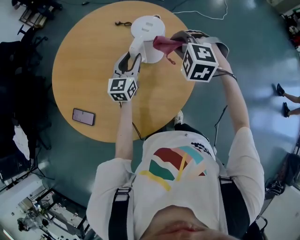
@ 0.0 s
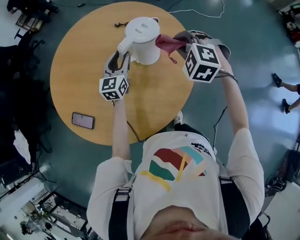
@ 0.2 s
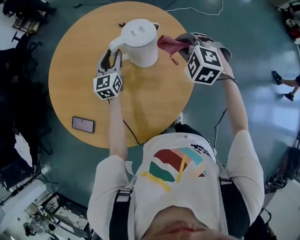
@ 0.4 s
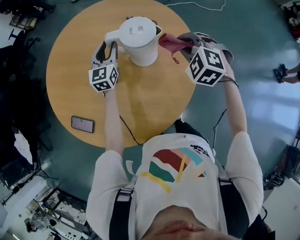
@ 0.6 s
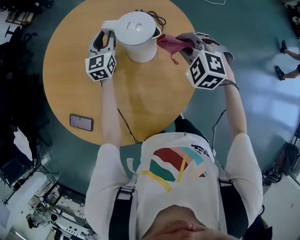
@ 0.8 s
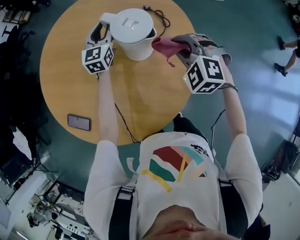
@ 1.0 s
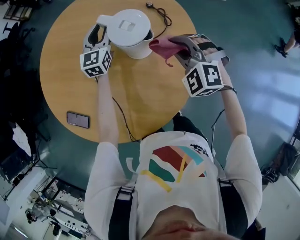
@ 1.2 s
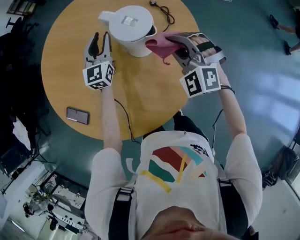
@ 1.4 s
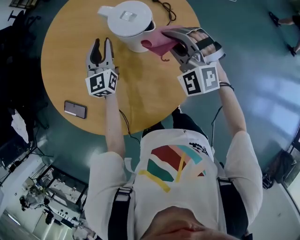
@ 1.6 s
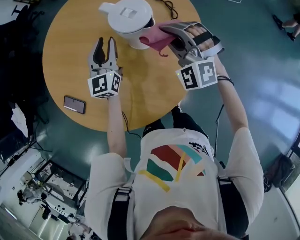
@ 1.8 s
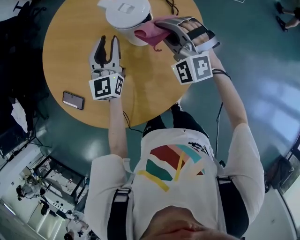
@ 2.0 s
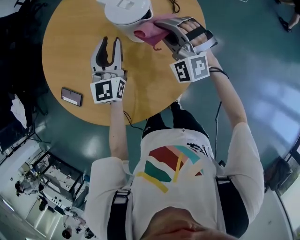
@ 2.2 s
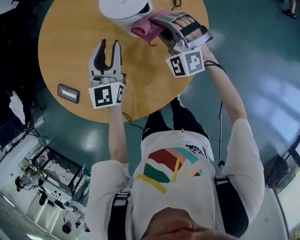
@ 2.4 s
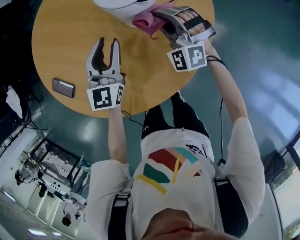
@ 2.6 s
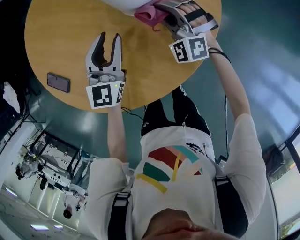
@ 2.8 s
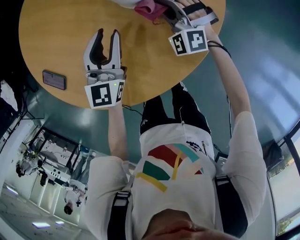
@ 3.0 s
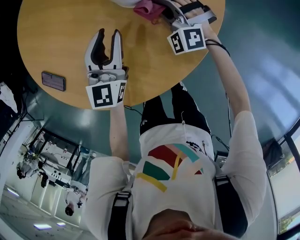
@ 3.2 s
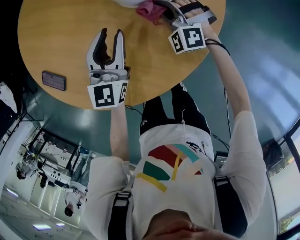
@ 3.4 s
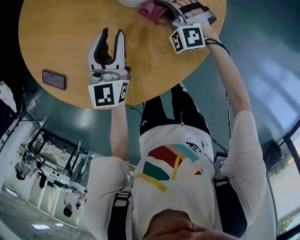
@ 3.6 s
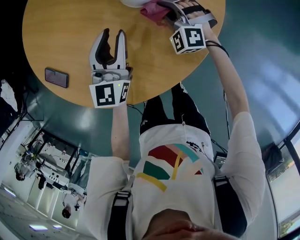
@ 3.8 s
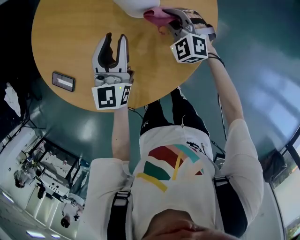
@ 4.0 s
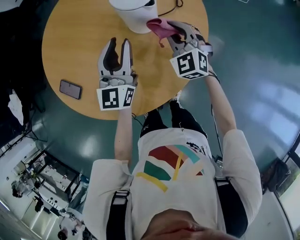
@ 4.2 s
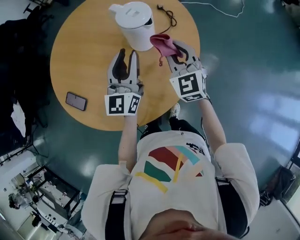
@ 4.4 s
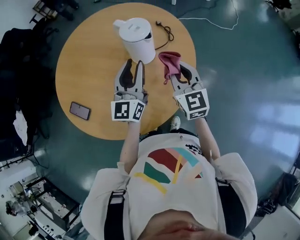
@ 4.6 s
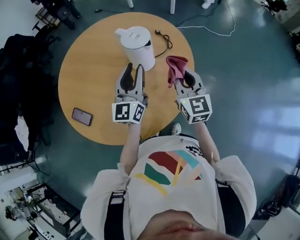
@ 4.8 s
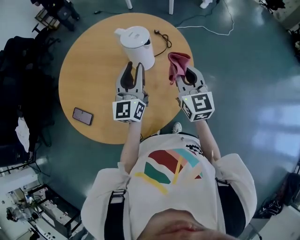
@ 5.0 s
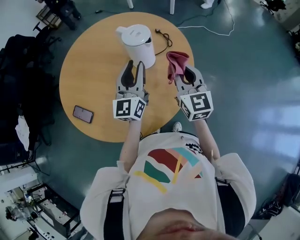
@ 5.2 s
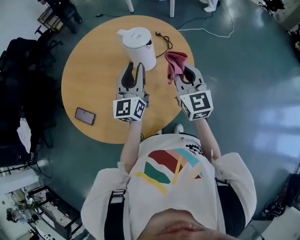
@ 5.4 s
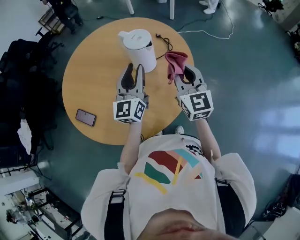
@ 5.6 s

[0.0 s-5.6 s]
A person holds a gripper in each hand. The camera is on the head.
0.0 to 1.4 s: The left gripper travels forward by about 15 cm. The right gripper heads forward, covering roughly 5 cm, and turns by approximately 20 degrees.
1.4 to 2.8 s: The left gripper is displaced backward and downward by roughly 20 cm; the right gripper heads downward, covering roughly 15 cm.
2.8 to 4.2 s: Both grippers travel together upward, some 10 cm. The right gripper rotates about 30 degrees.
4.2 to 5.6 s: The left gripper is displaced upward and backward by roughly 10 cm; the right gripper travels upward and backward by approximately 20 cm, and rotates approximately 40 degrees.

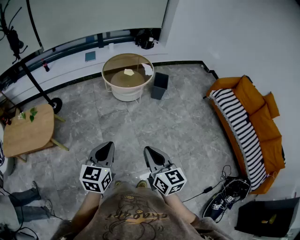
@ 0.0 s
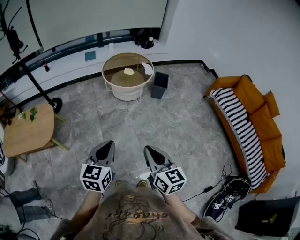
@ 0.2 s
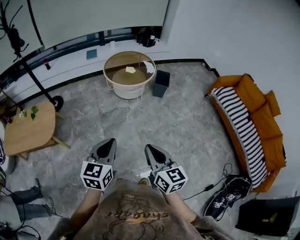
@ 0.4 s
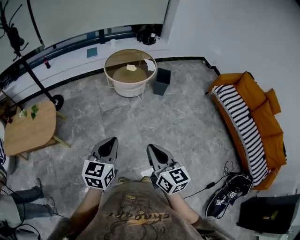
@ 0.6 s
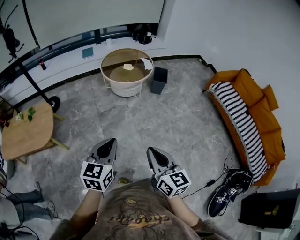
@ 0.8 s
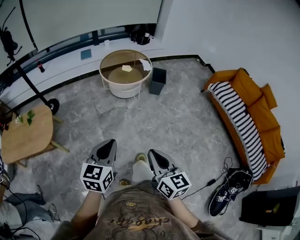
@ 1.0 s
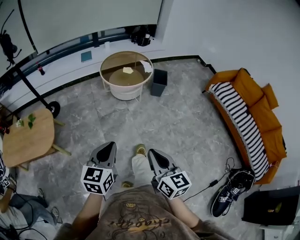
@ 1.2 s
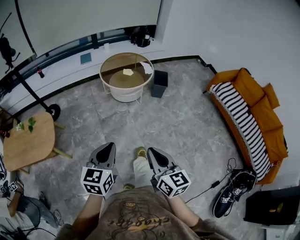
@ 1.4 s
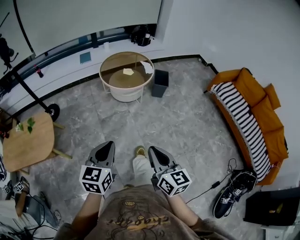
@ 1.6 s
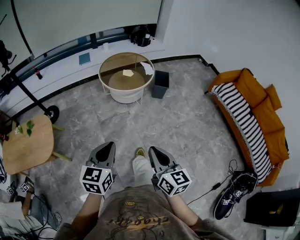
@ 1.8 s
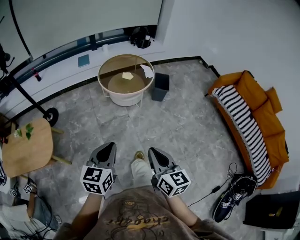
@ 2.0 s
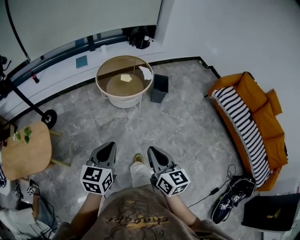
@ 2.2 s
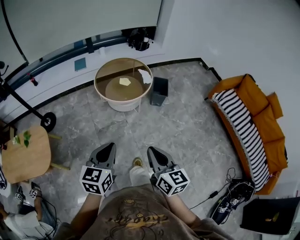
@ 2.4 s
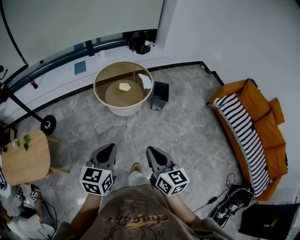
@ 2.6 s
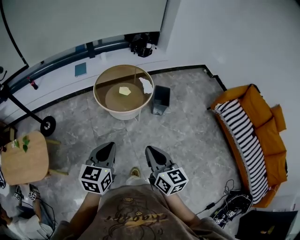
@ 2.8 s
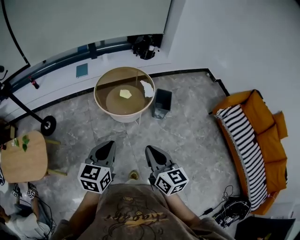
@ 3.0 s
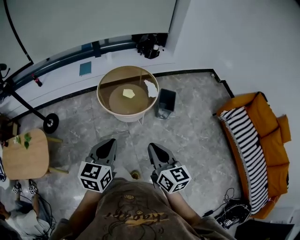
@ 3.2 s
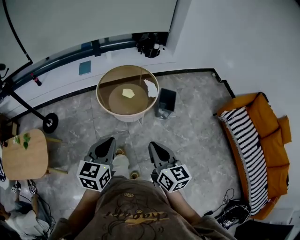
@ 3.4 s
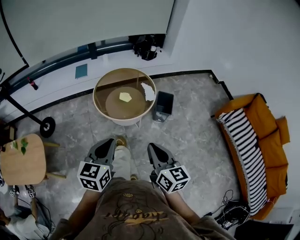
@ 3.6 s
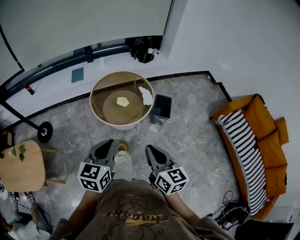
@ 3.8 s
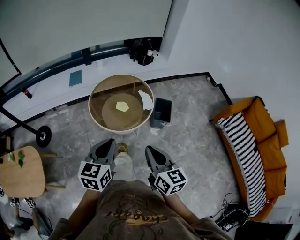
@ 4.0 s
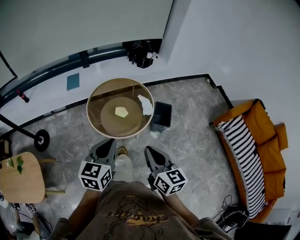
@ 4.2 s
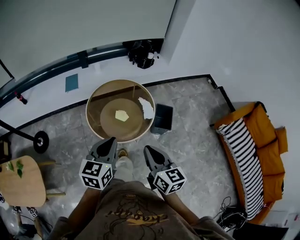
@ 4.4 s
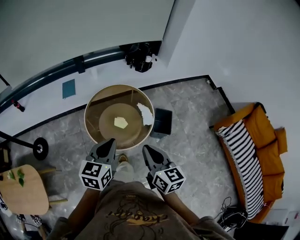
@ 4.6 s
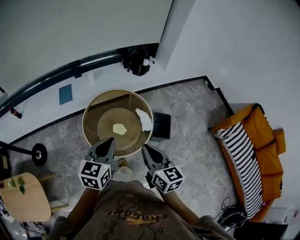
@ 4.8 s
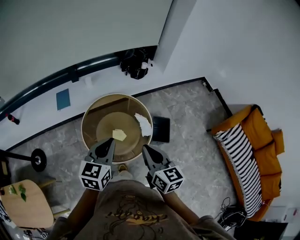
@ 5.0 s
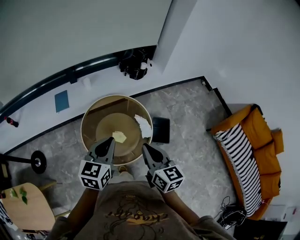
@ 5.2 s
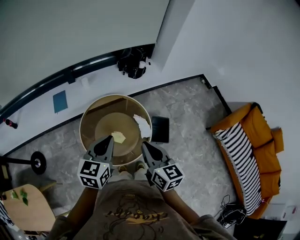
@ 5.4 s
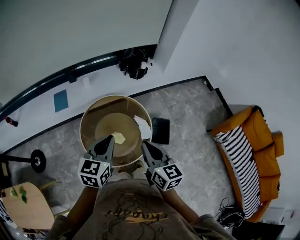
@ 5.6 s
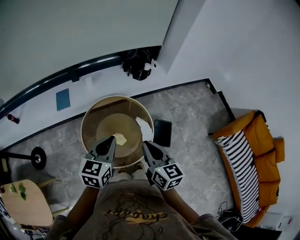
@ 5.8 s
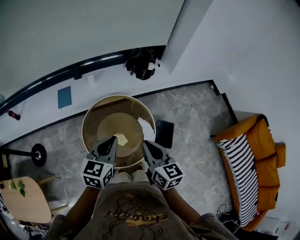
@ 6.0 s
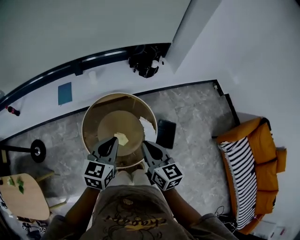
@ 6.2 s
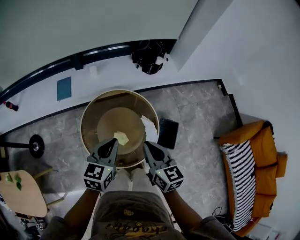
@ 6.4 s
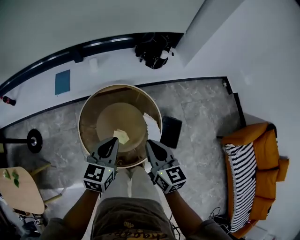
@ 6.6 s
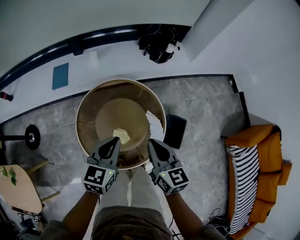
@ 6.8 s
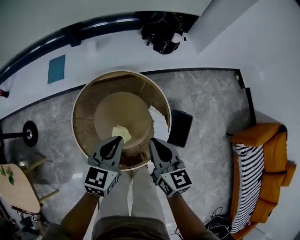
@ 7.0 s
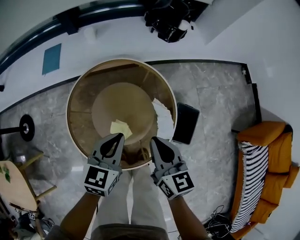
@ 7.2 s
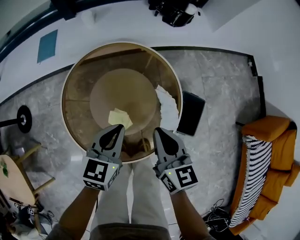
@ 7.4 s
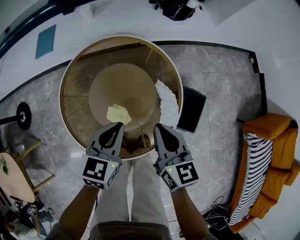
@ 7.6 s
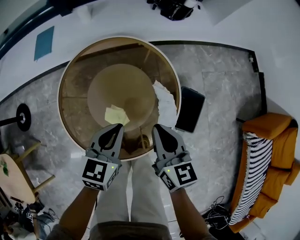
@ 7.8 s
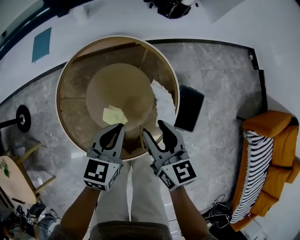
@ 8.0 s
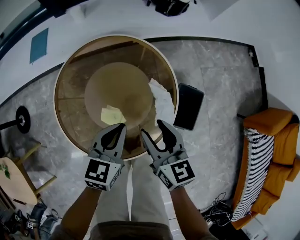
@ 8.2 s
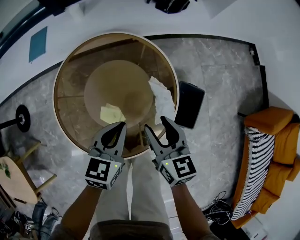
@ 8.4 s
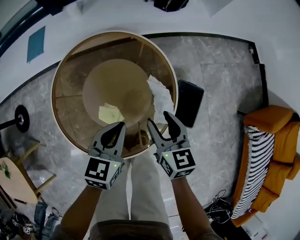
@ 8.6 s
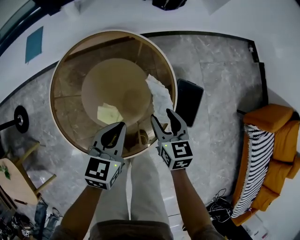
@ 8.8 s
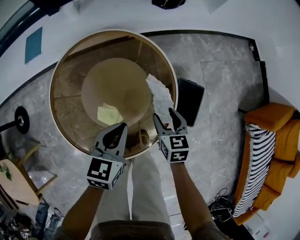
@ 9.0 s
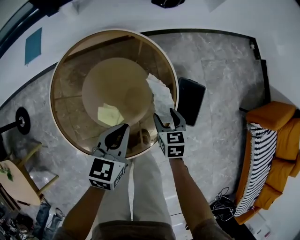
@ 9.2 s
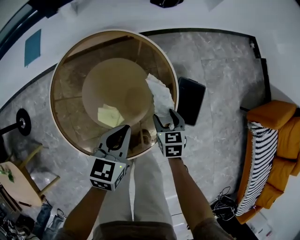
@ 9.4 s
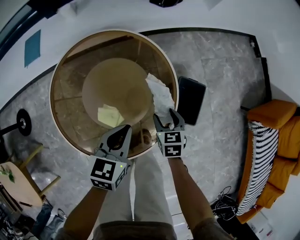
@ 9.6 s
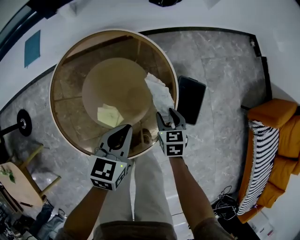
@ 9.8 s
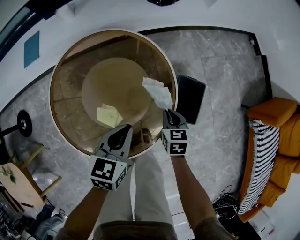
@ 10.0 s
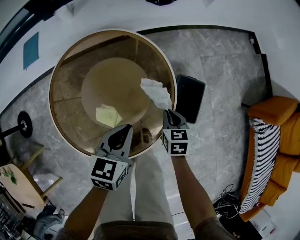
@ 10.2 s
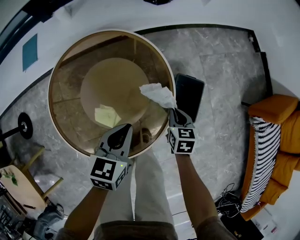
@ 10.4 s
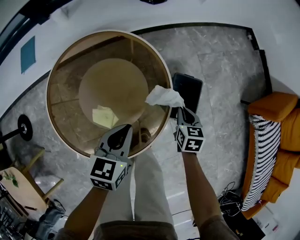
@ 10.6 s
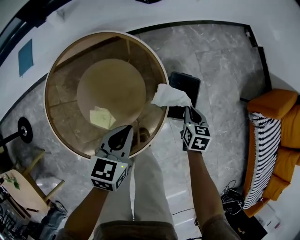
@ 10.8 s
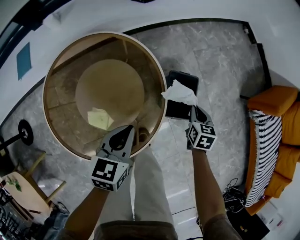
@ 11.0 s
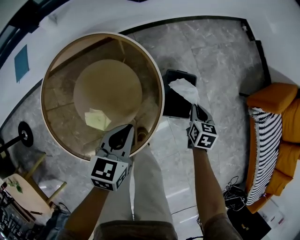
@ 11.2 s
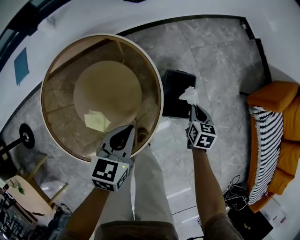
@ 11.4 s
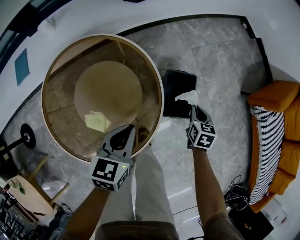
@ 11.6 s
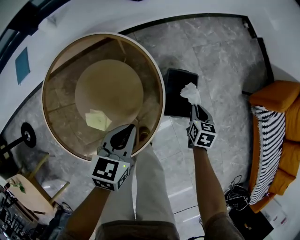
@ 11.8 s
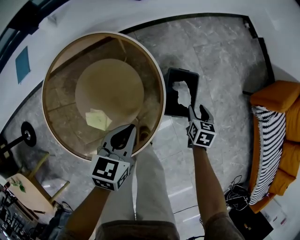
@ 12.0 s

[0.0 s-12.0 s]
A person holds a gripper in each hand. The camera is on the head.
0.0 to 1.6 s: The left gripper shifts about 10 cm forward and to the left, while the right gripper moves roughly 5 cm.
1.6 to 3.0 s: Both grippers travel together forward, some 25 cm.
3.0 to 4.4 s: Both grippers move forward, some 25 cm.
4.4 to 6.0 s: The two grippers go about 25 cm forward.
6.0 to 7.6 s: The two grippers go approximately 30 cm downward.
7.6 to 9.0 s: The right gripper travels downward and to the right by roughly 15 cm, changes its angle by some 20 degrees, and opens, while the left gripper ends up about 5 cm from where it was.
9.0 to 10.4 s: The right gripper shifts about 5 cm to the right, and closes its fingers.
10.4 to 12.0 s: The right gripper shifts roughly 15 cm to the right, and opens. The left gripper heads to the right, covering roughly 5 cm.

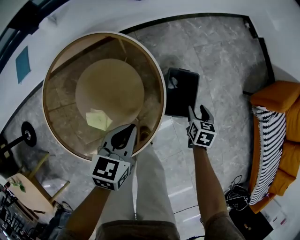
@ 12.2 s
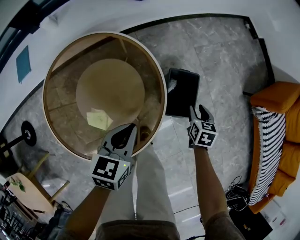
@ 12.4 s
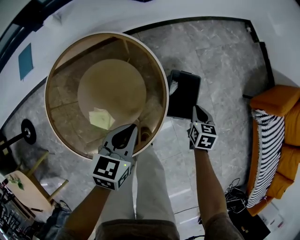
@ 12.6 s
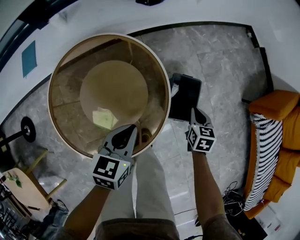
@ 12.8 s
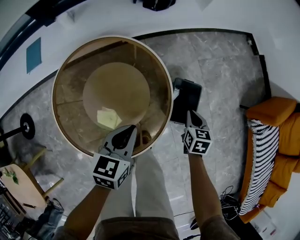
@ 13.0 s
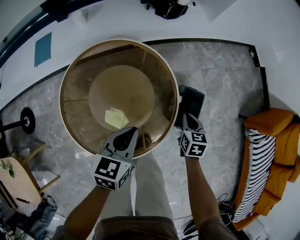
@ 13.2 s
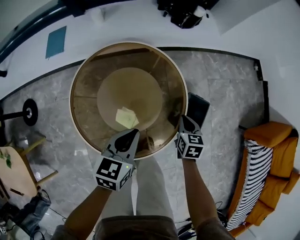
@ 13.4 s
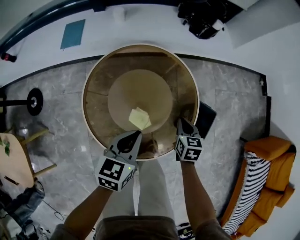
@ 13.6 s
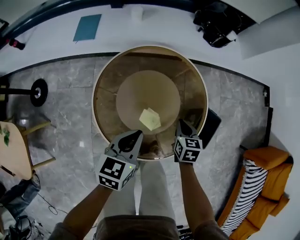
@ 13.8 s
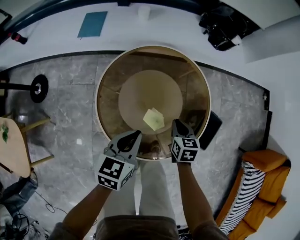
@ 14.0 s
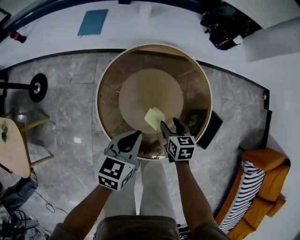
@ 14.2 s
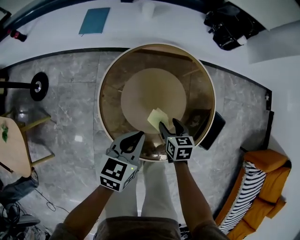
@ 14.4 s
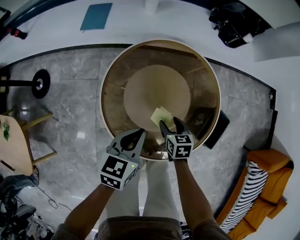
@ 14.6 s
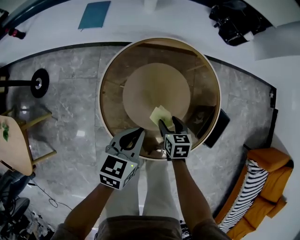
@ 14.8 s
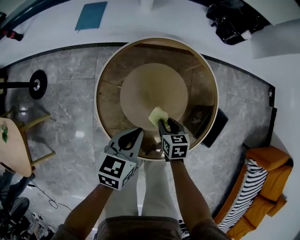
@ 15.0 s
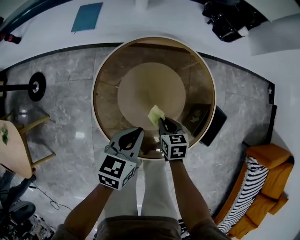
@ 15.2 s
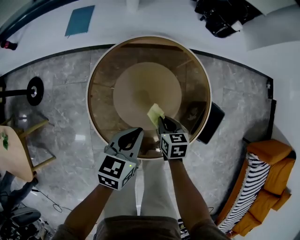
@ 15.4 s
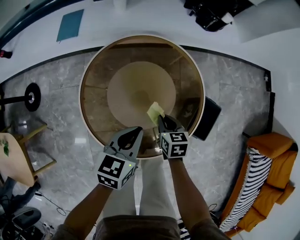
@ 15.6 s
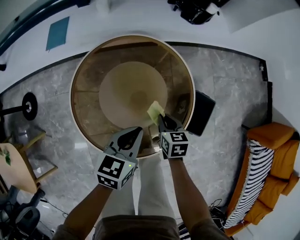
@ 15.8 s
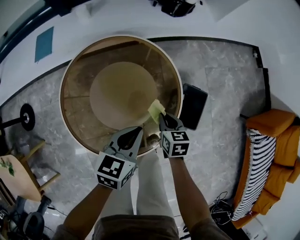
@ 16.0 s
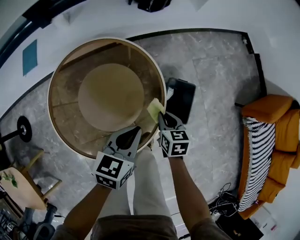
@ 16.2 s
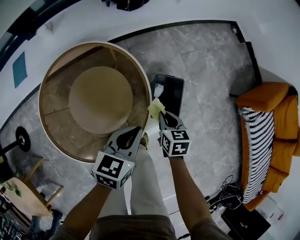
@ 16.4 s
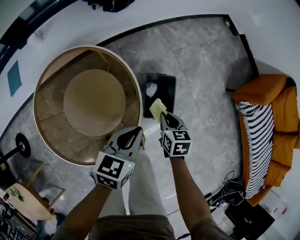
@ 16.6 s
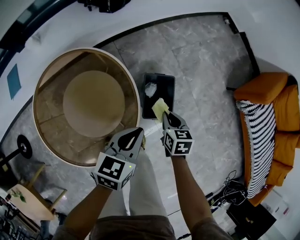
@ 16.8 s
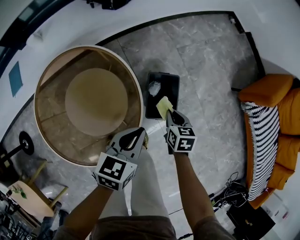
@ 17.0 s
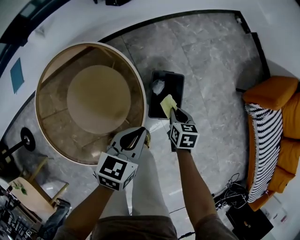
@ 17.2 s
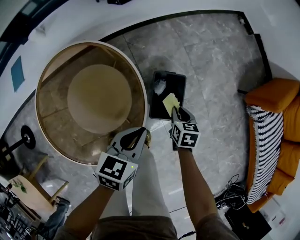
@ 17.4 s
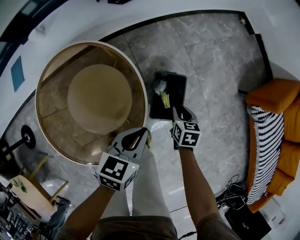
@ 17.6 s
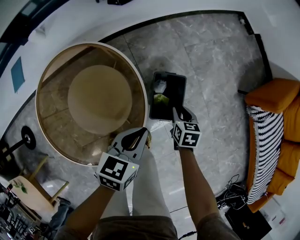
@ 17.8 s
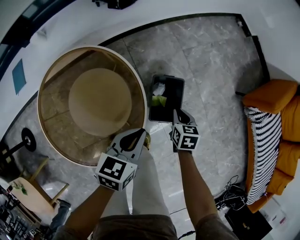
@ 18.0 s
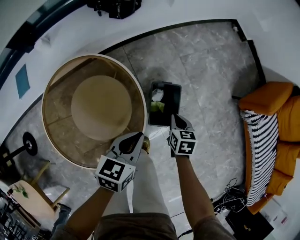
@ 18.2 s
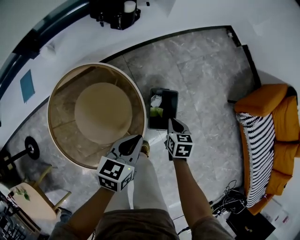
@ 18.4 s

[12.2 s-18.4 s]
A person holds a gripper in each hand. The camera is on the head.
12.2 to 13.8 s: The left gripper changes place by roughly 20 cm, and rotates approximately 20 degrees. The right gripper ends up roughly 30 cm from where it was, swivels approximately 30 degrees, and closes its fingers.
13.8 to 15.4 s: The right gripper shifts about 10 cm to the left, and opens, then closes again.
15.4 to 16.8 s: The right gripper ends up approximately 35 cm from where it was, and swivels roughly 30 degrees; the left gripper changes place by some 30 cm, and turns by about 30 degrees.
16.8 to 18.4 s: The left gripper changes place by some 5 cm.
